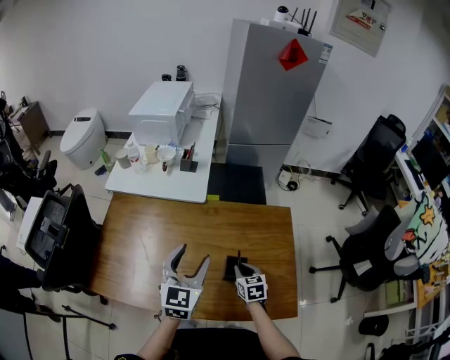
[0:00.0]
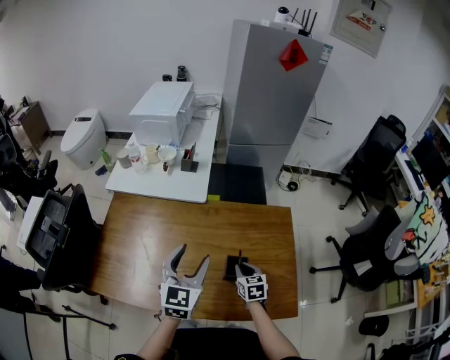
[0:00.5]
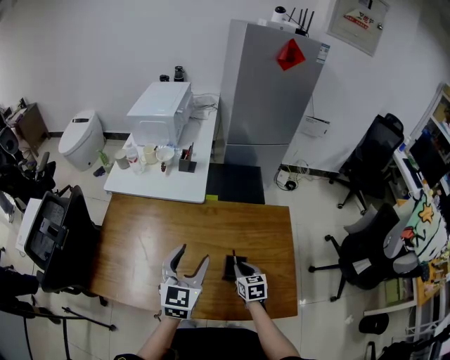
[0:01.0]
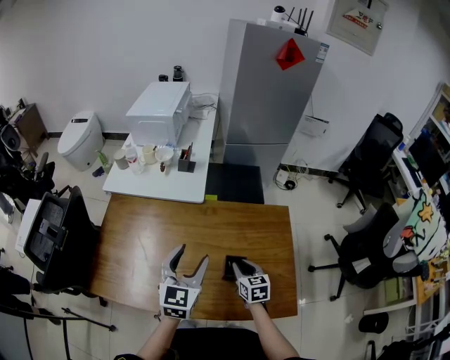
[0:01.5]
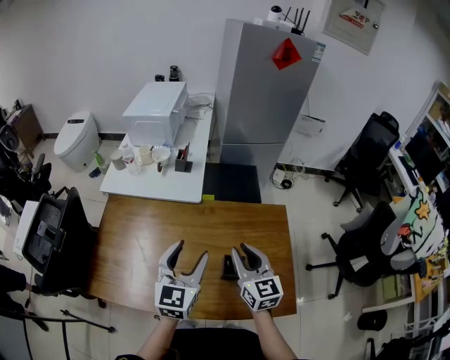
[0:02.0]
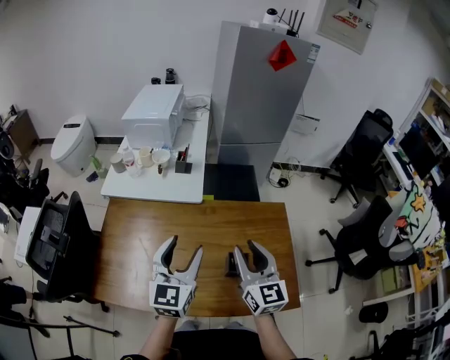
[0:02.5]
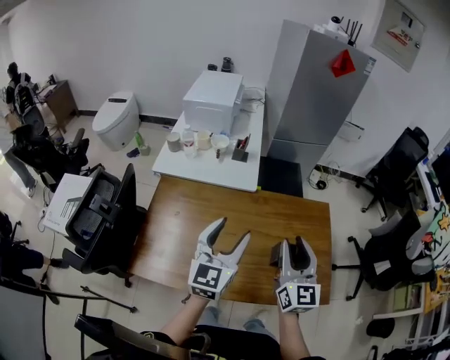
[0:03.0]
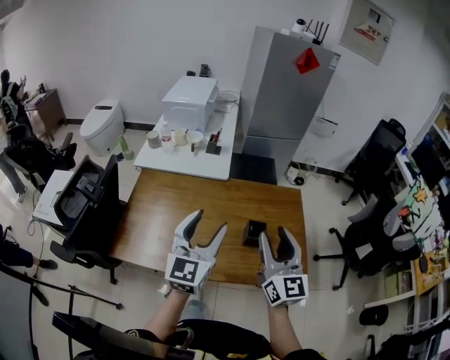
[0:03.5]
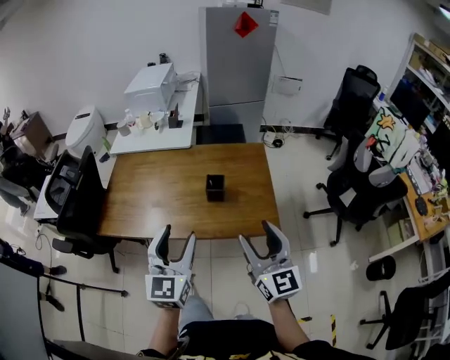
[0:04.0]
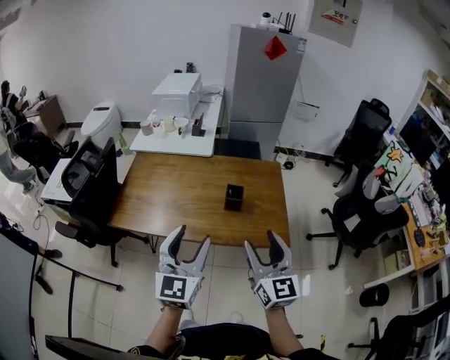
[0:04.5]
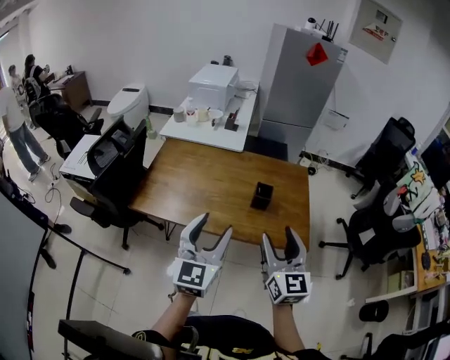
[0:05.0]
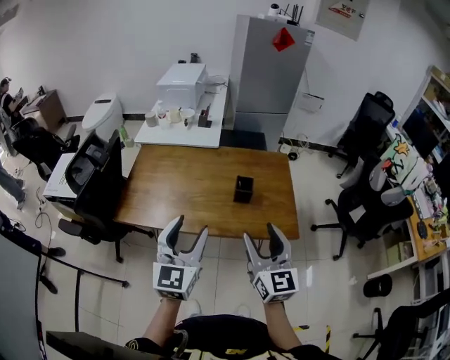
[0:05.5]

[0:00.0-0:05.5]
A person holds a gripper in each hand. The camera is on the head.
0:00.0 to 0:02.0: The right gripper is displaced upward by roughly 20 cm, and angles its fingers upward, by roughly 30 degrees.
0:02.0 to 0:03.5: The left gripper heads backward, upward and to the left, covering approximately 15 cm. Meanwhile the right gripper shifts roughly 20 cm backward and upward, and opens up.
0:03.5 to 0:05.5: Both grippers travel together backward, some 20 cm.

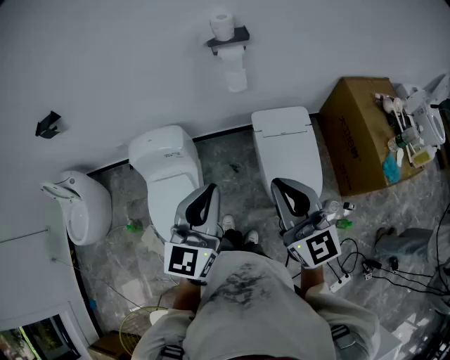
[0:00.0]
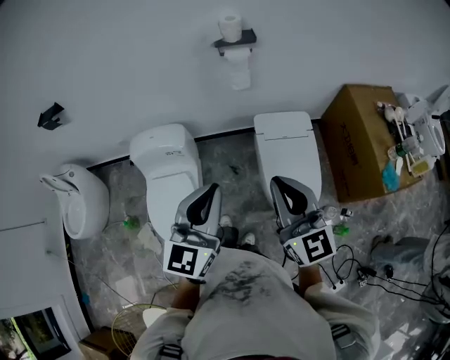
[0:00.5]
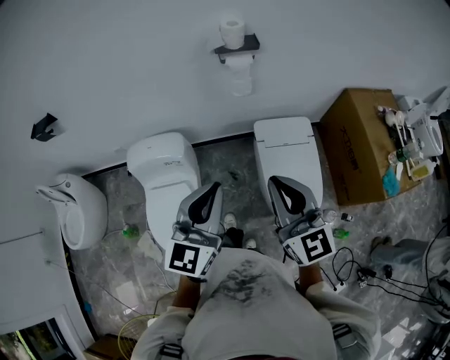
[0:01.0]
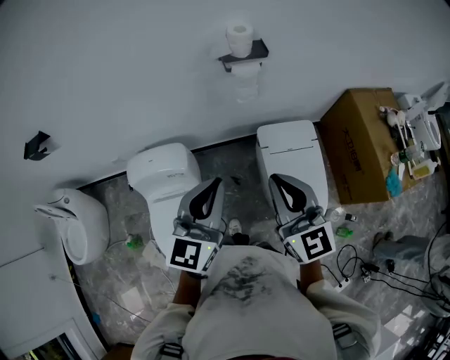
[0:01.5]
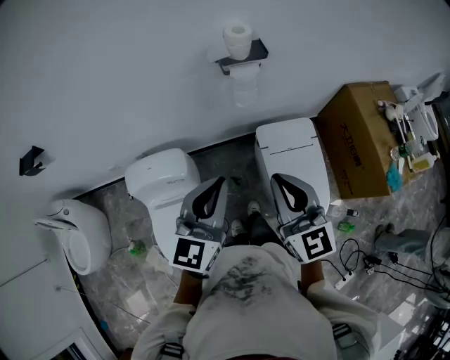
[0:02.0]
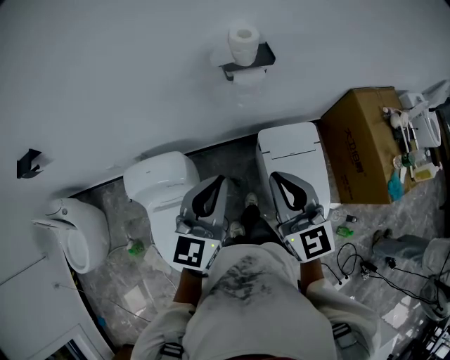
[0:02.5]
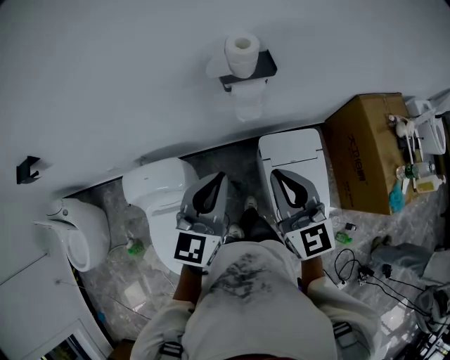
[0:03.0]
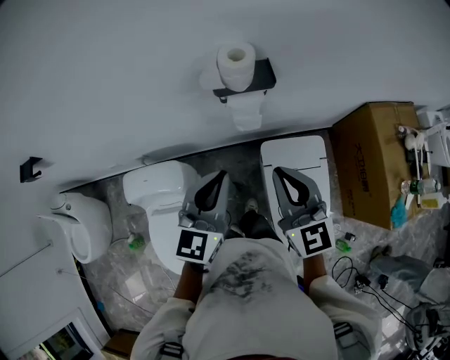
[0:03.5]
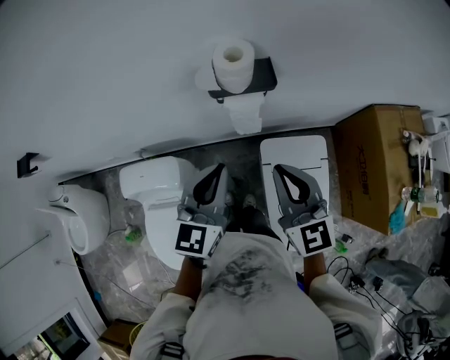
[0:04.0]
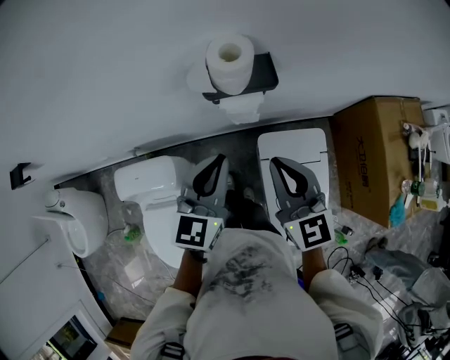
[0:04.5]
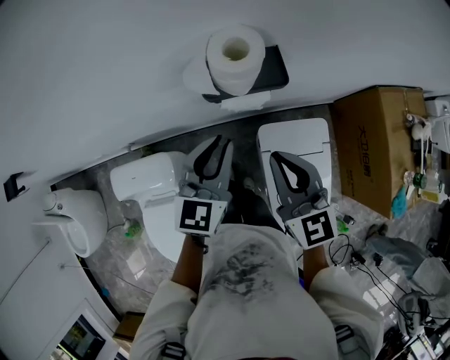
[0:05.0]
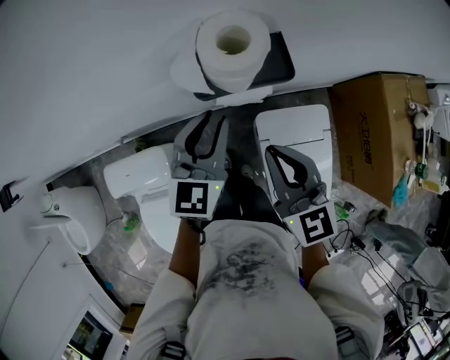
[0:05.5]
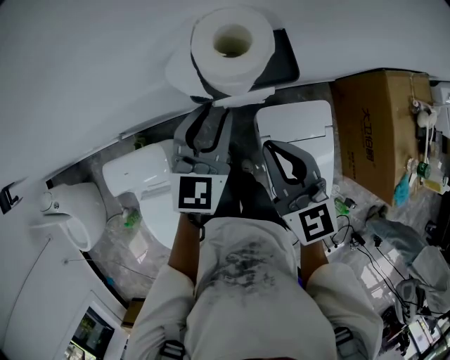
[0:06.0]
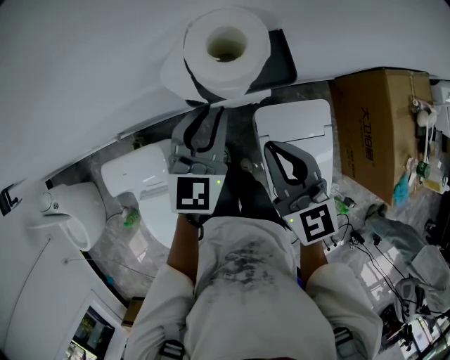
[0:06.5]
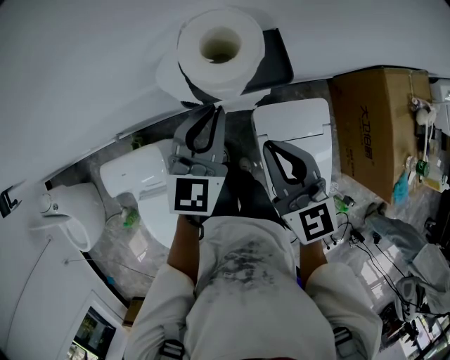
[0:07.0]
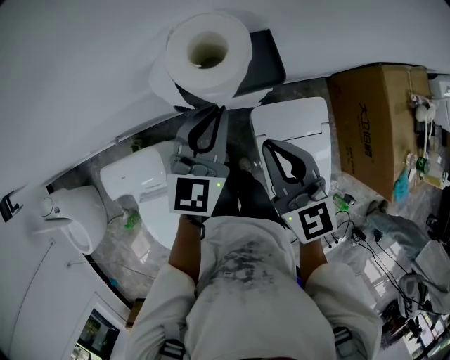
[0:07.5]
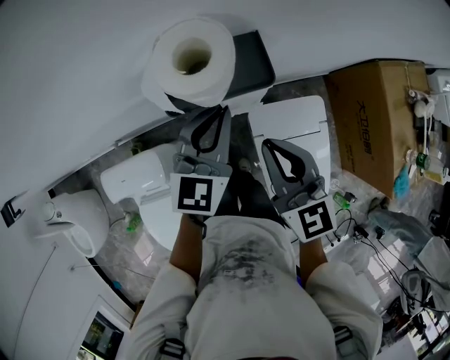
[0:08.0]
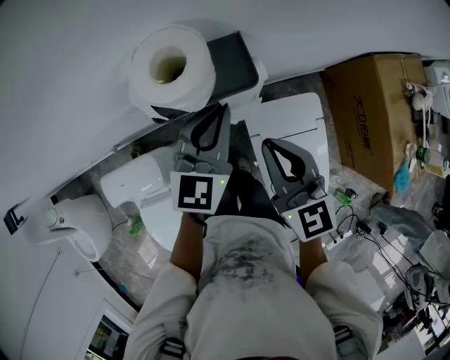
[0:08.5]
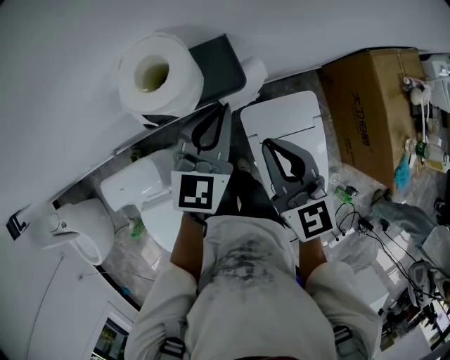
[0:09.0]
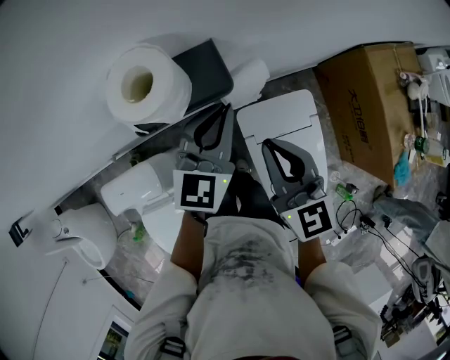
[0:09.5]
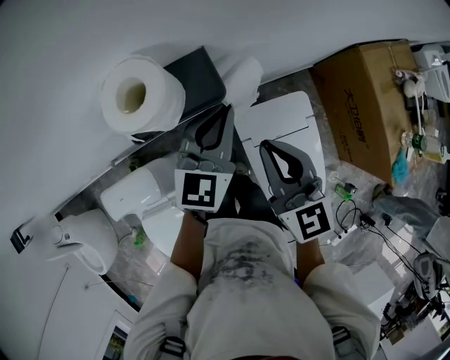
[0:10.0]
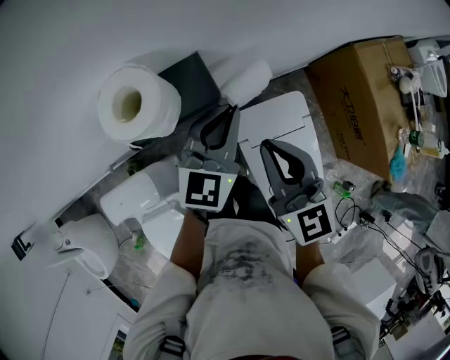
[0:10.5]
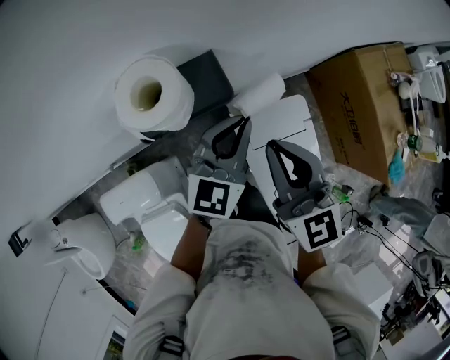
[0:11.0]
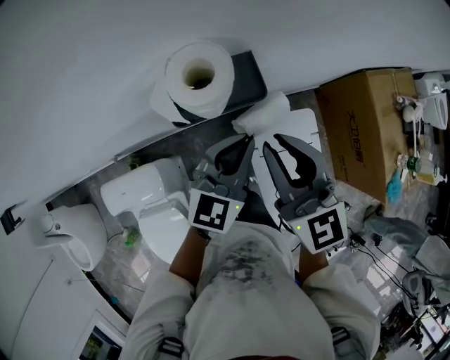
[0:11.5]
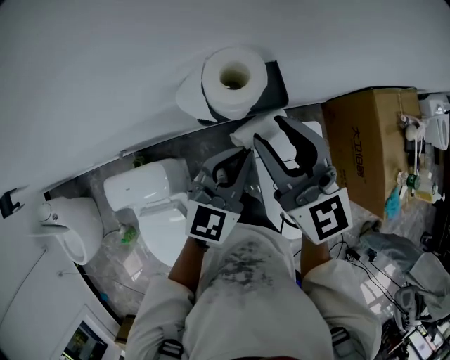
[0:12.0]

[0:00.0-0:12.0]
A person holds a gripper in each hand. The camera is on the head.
0:00.0 to 0:02.0: The right gripper moves forward and to the left, roughly 20 cm. Meanwhile the left gripper moves forward, about 20 cm.
0:02.0 to 0:04.0: Both grippers move forward, roughly 20 cm.
0:04.0 to 0:06.0: The left gripper is displaced forward and downward by approximately 20 cm, and opens up, while the right gripper travels forward and downward by some 15 cm.
0:06.0 to 0:08.0: The left gripper closes its fingers.
0:08.0 to 0:10.0: The two grippers go approximately 5 cm to the right.
0:10.0 to 0:12.0: The left gripper is displaced backward and to the left by approximately 10 cm. The right gripper is displaced to the left and upward by some 15 cm, and opens its fingers.

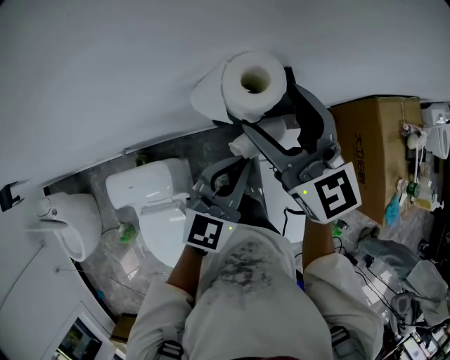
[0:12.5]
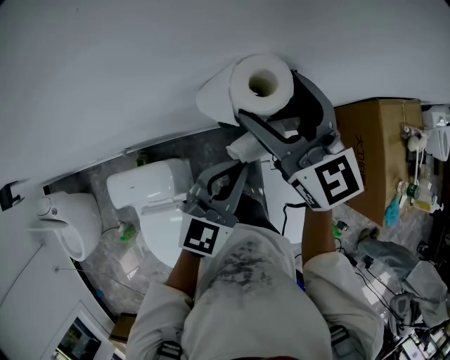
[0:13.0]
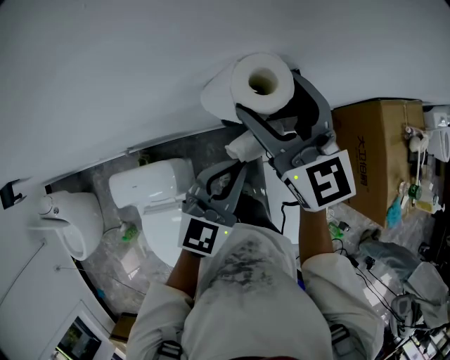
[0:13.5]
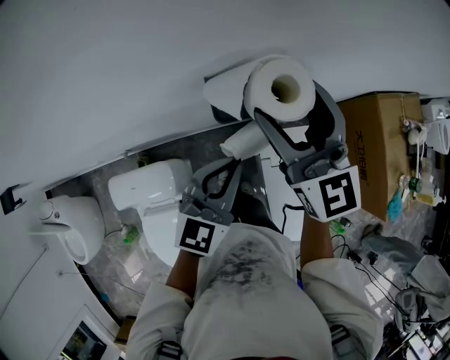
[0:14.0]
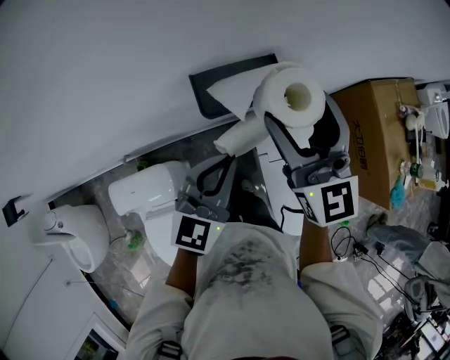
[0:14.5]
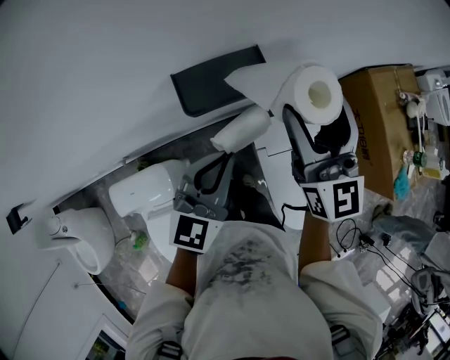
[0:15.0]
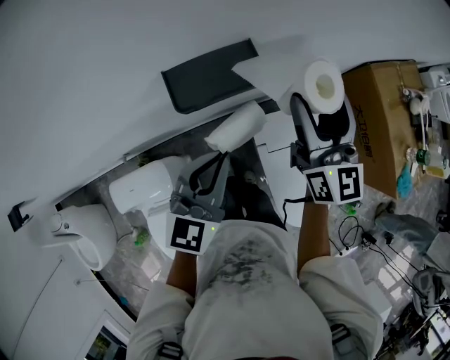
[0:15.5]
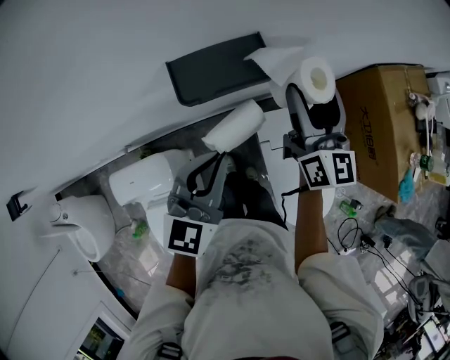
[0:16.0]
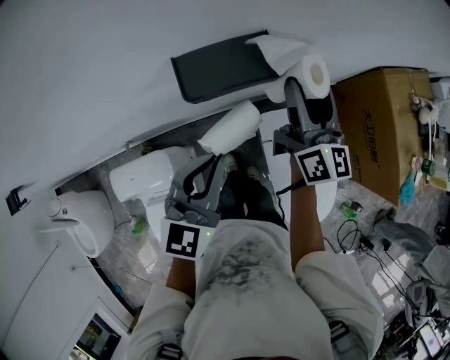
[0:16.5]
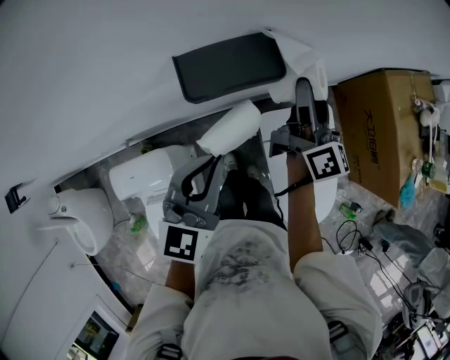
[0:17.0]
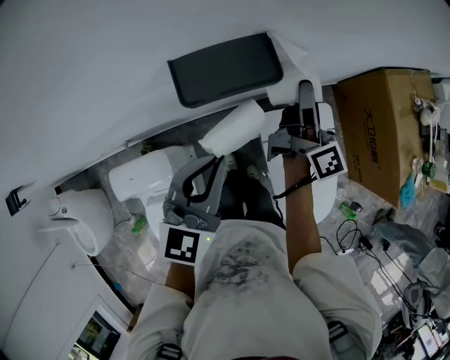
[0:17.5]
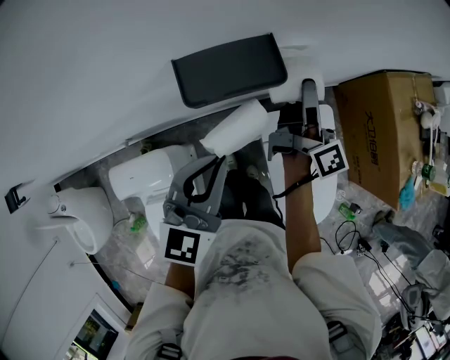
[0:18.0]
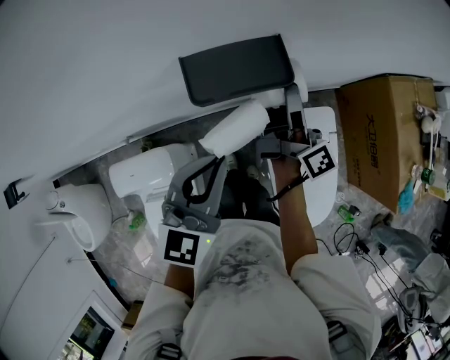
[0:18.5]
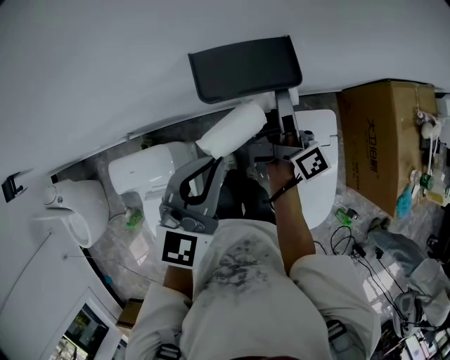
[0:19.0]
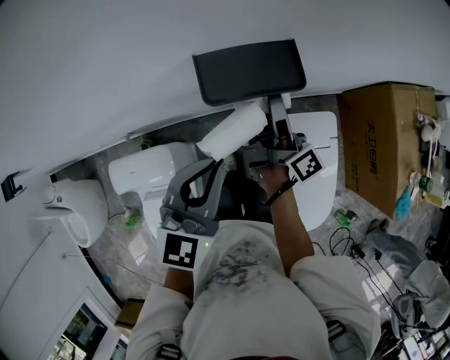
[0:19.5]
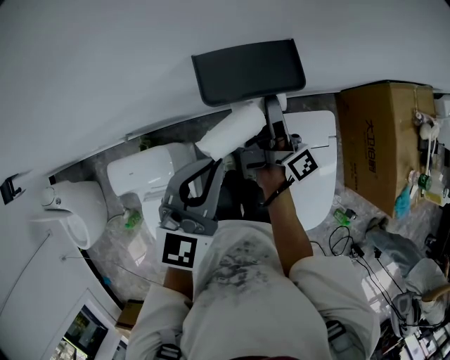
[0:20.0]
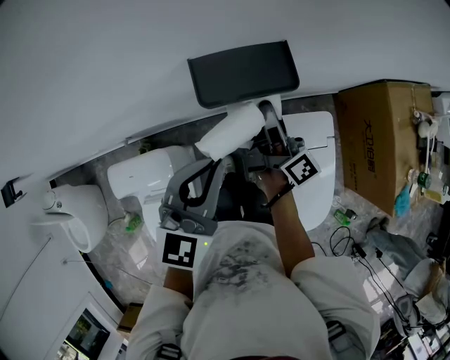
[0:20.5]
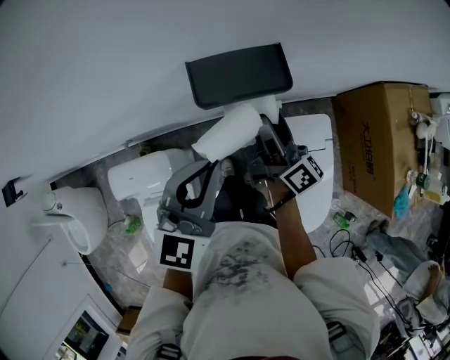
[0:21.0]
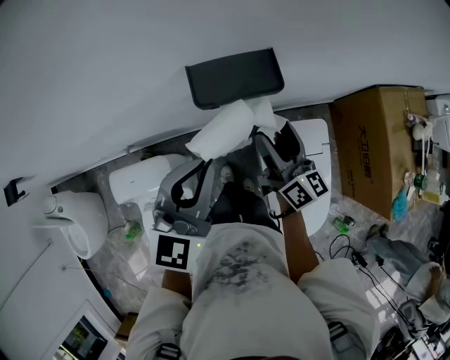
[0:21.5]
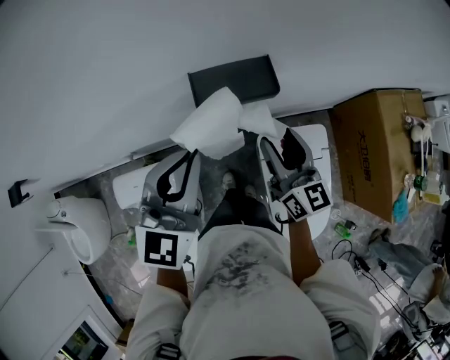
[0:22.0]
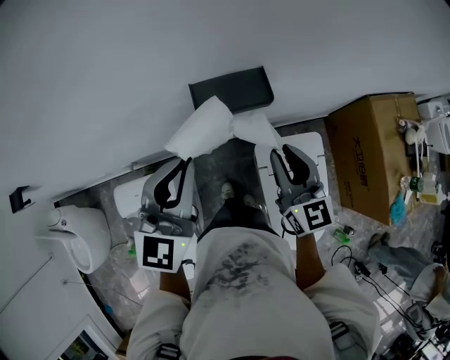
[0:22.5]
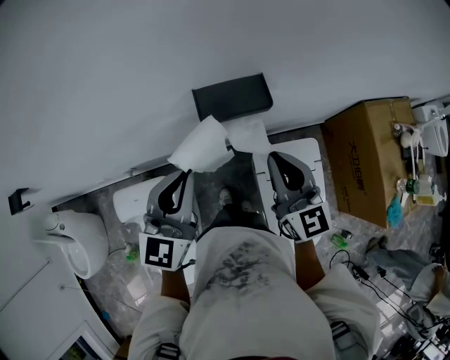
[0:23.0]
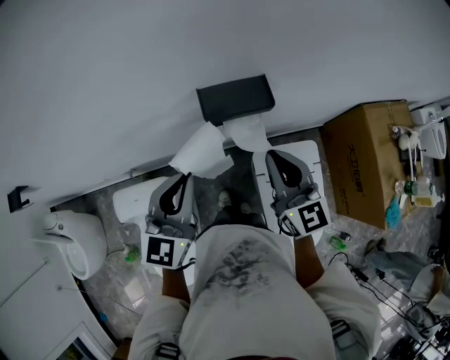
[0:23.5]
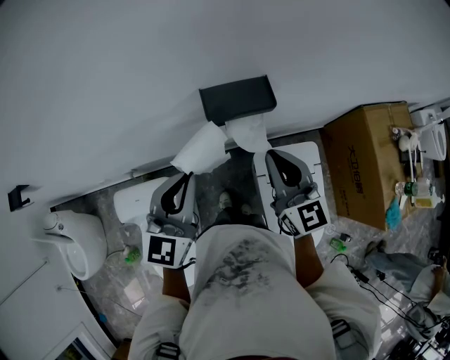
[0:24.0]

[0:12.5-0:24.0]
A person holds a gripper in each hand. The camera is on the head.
0:12.5 to 0:14.5: The right gripper travels to the right by roughly 5 cm.
0:14.5 to 0:16.5: The right gripper travels downward and to the right by roughly 15 cm, and rotates some 40 degrees.
0:16.5 to 0:18.5: The right gripper changes place by roughly 5 cm, and rotates around the line of its fingers by roughly 40 degrees, clockwise from behind.
0:18.5 to 0:20.0: The right gripper travels to the left by about 5 cm.
0:20.0 to 0:22.0: The left gripper moves upward, some 10 cm; the right gripper heads backward, covering roughly 10 cm, rotates around the line of its fingers by about 60 degrees, counterclockwise from behind, and closes its fingers.
0:22.0 to 0:24.0: The right gripper shifts roughly 5 cm upward, and closes its fingers, while the left gripper changes place by roughly 5 cm.
